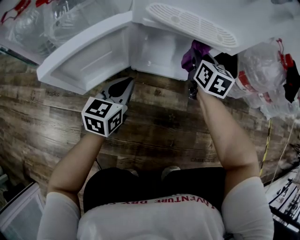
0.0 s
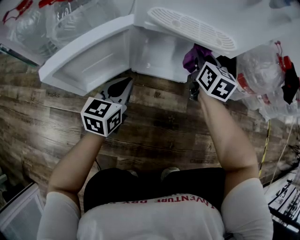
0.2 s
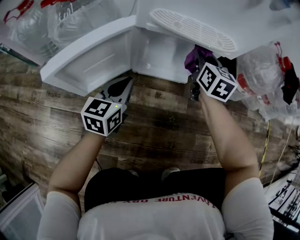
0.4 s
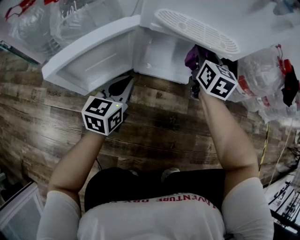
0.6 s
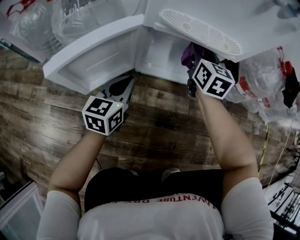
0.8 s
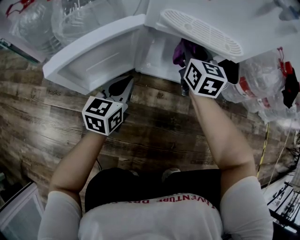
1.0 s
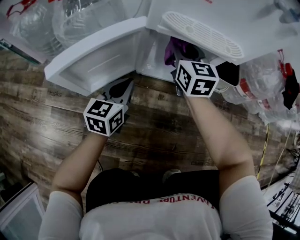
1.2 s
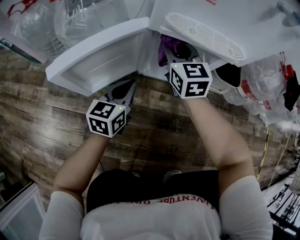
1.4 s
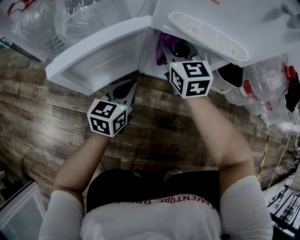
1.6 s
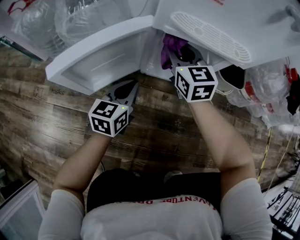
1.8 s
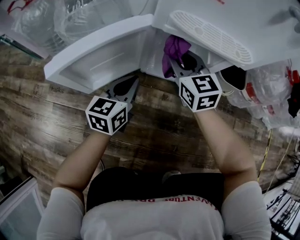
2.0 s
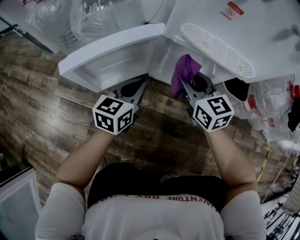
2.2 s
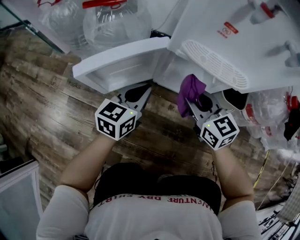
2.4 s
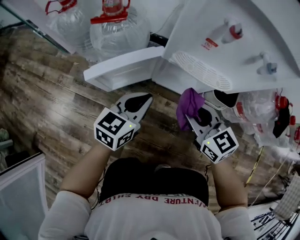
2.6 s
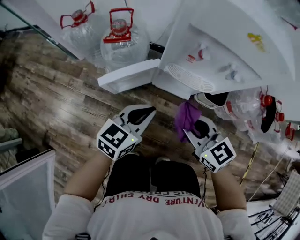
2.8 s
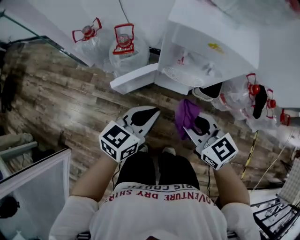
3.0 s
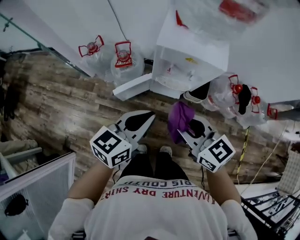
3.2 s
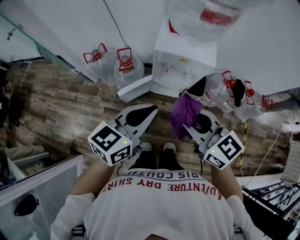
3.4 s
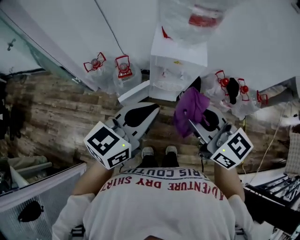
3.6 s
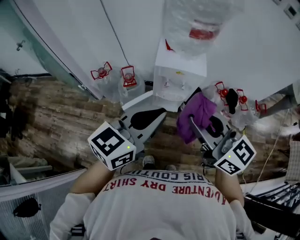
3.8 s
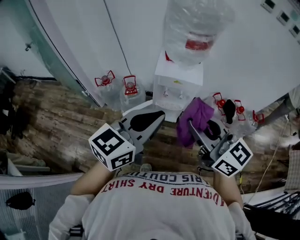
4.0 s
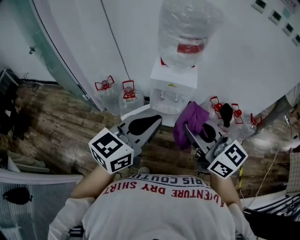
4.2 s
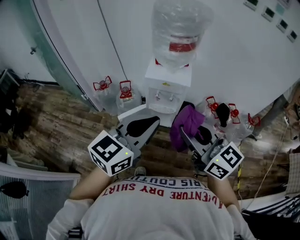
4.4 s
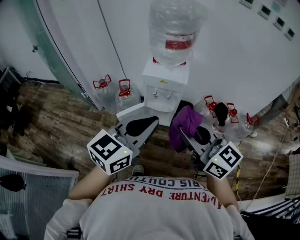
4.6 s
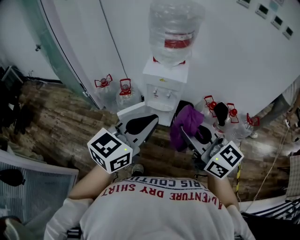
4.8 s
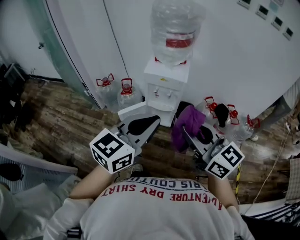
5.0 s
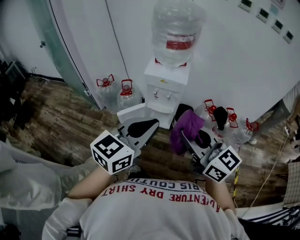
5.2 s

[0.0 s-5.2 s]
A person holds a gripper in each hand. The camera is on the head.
0.0 to 1.8 s: The right gripper travels to the left by some 15 cm, and swivels approximately 30 degrees.
1.8 to 3.4 s: The left gripper heads upward, covering roughly 70 cm. The right gripper goes some 70 cm upward and backward, and changes its angle by approximately 30 degrees.
3.4 to 5.2 s: The right gripper heads backward, to the right and upward, covering some 25 cm; the left gripper shifts about 25 cm backward, upward and to the right.

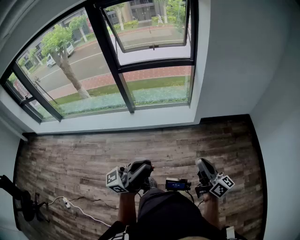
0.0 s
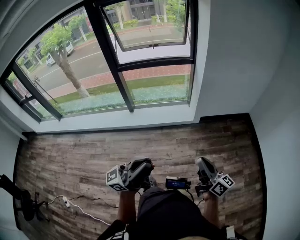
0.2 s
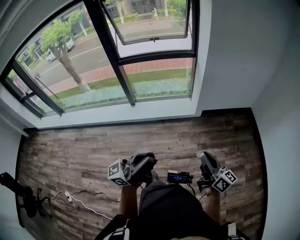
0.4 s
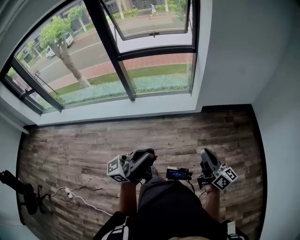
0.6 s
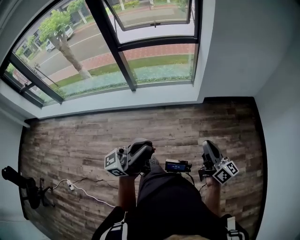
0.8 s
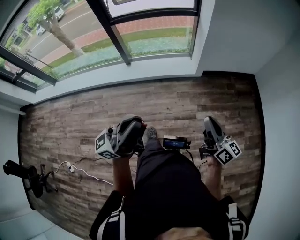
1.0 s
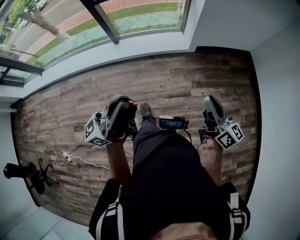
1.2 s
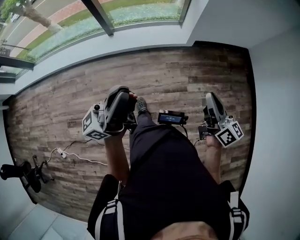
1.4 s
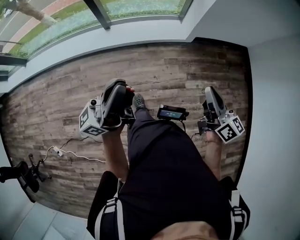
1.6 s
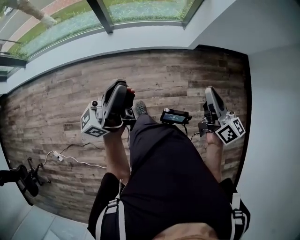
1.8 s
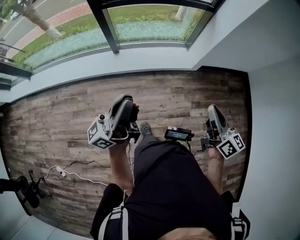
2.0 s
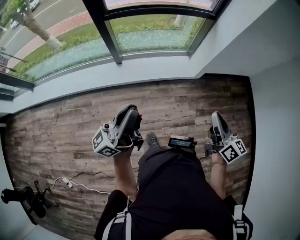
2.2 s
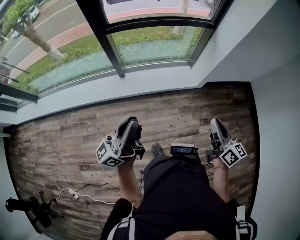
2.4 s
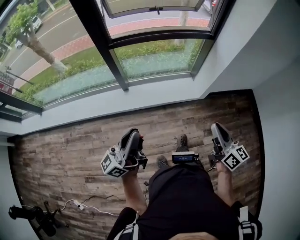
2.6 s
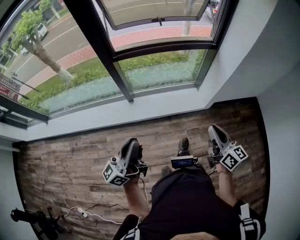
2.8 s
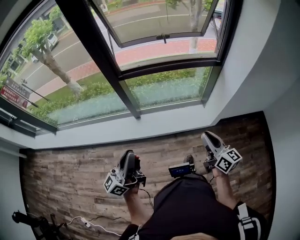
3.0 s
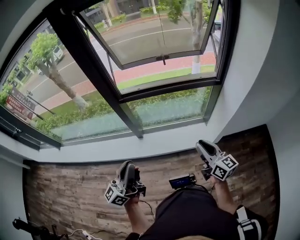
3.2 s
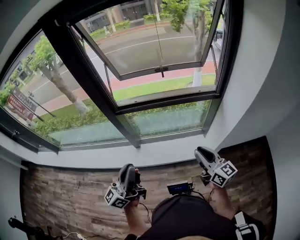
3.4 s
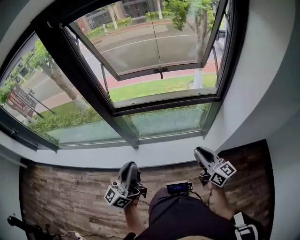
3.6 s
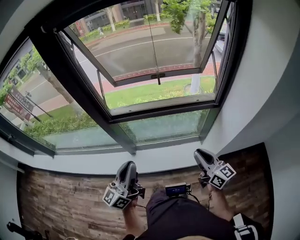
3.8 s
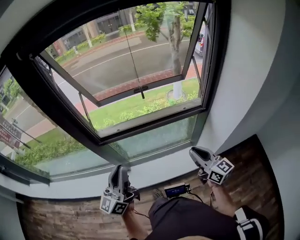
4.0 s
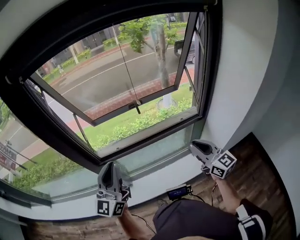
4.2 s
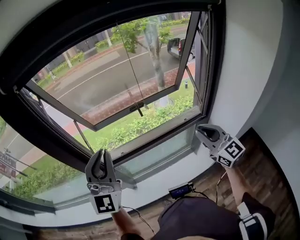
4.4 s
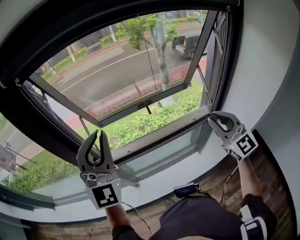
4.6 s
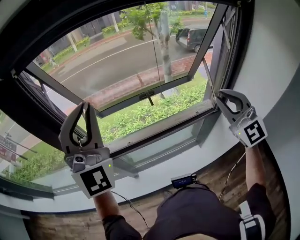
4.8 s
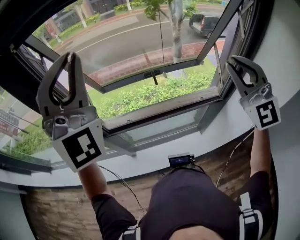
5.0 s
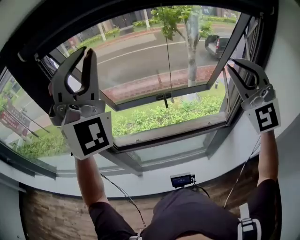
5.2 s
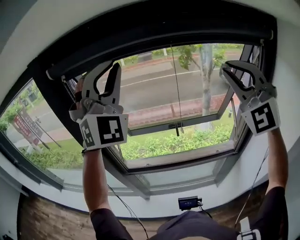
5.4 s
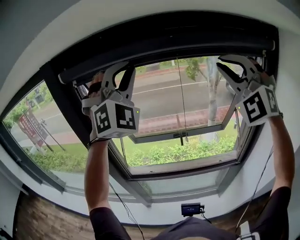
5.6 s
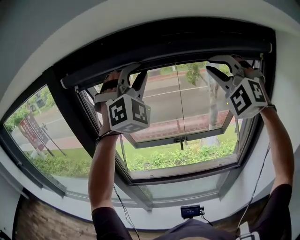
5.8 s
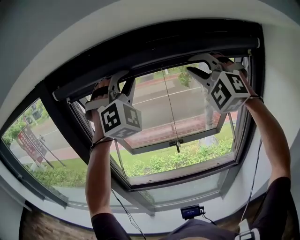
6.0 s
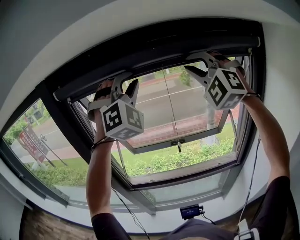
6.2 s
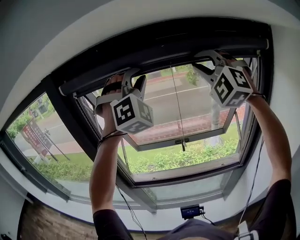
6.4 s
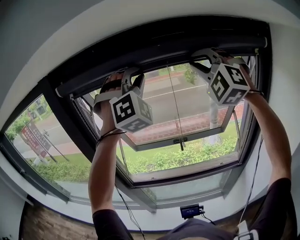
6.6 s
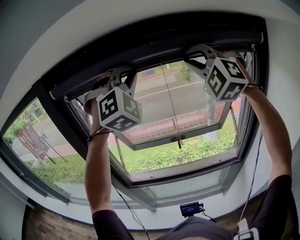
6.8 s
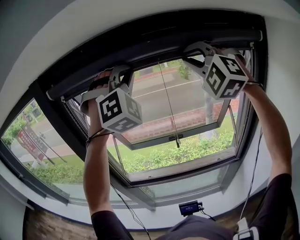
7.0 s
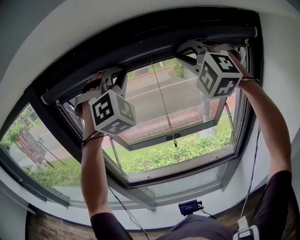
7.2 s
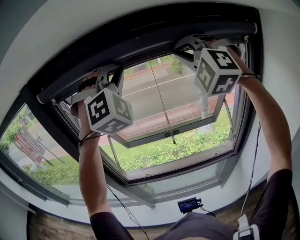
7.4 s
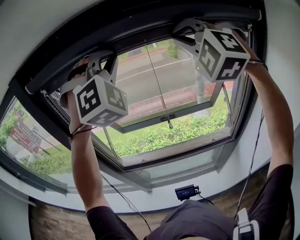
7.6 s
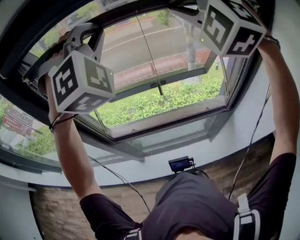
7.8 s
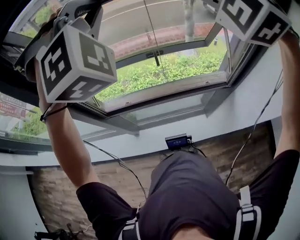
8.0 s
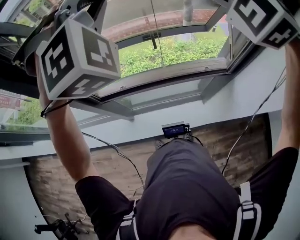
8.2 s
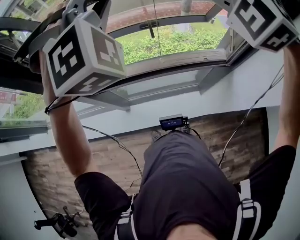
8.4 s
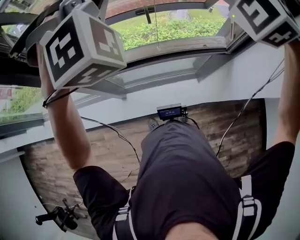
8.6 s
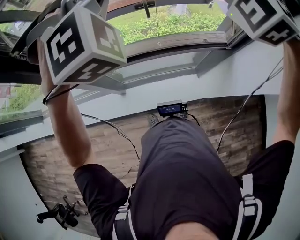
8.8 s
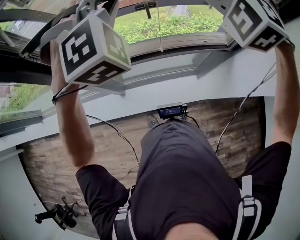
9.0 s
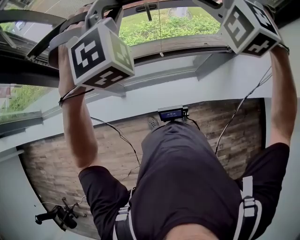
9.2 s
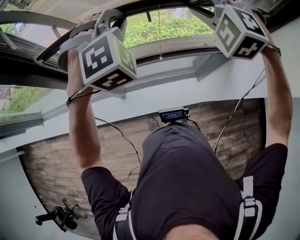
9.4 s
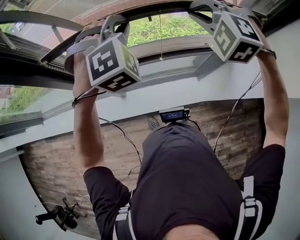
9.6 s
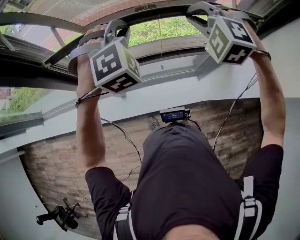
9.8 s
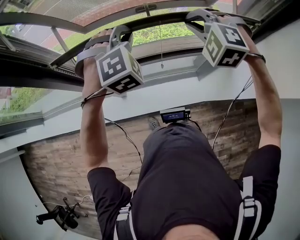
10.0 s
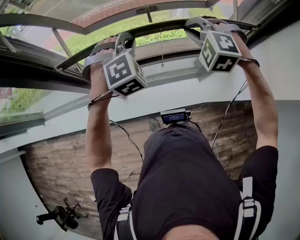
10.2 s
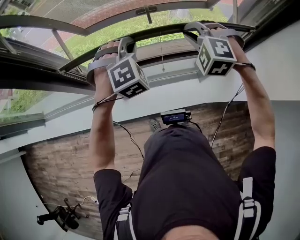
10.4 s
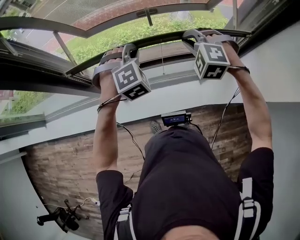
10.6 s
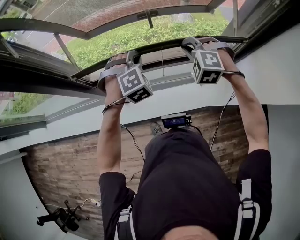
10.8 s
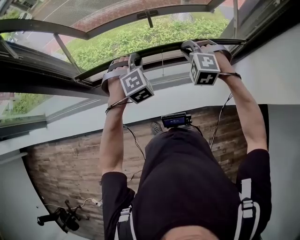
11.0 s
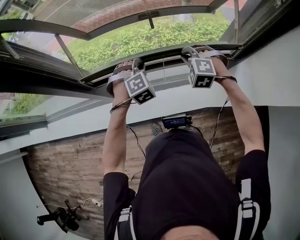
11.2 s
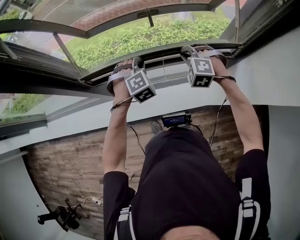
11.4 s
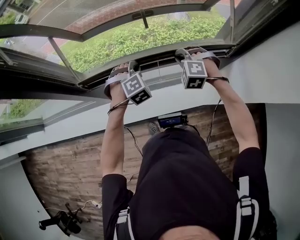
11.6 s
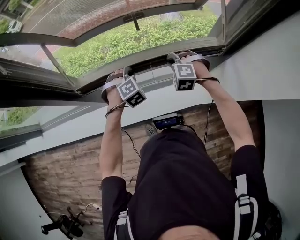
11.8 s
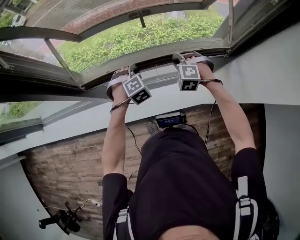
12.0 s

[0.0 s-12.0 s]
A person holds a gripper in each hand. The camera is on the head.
0.0 to 1.6 s: The grippers both shift forward and to the left by about 15 cm.
1.6 to 3.0 s: Both grippers move forward and to the left, roughly 30 cm. The left gripper turns by some 20 degrees.
3.0 to 4.4 s: The two grippers go about 40 cm forward and upward. The left gripper rotates around the line of its fingers by approximately 60 degrees, clockwise from behind, while the right gripper swivels roughly 40 degrees.
4.4 to 6.0 s: The two grippers go some 35 cm upward and forward. The left gripper rotates around the line of its fingers by approximately 60 degrees, clockwise from behind; the right gripper rolls counterclockwise, seen from behind, by roughly 80 degrees.
6.0 to 7.6 s: The grippers move only a little.
7.6 to 9.0 s: Both grippers travel together downward, approximately 25 cm. The left gripper swivels about 30 degrees. Meanwhile the right gripper turns by some 30 degrees.
9.0 to 10.4 s: The grippers both shift downward by about 20 cm.
10.4 to 12.0 s: The grippers both shift downward by approximately 20 cm.

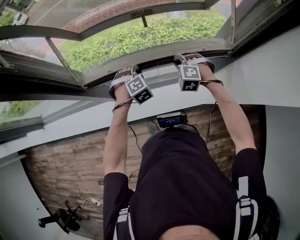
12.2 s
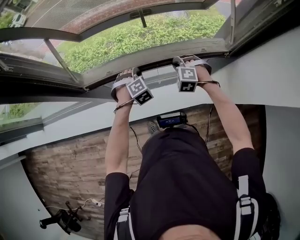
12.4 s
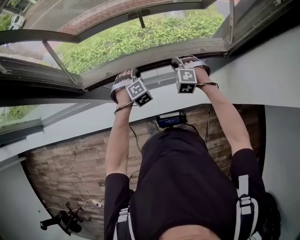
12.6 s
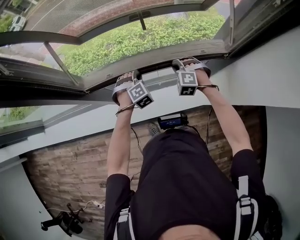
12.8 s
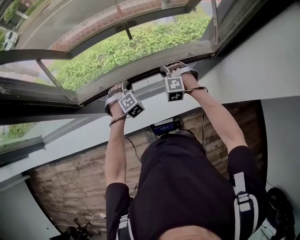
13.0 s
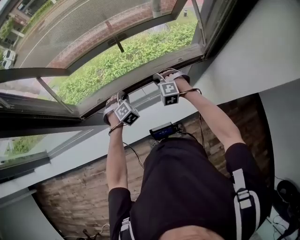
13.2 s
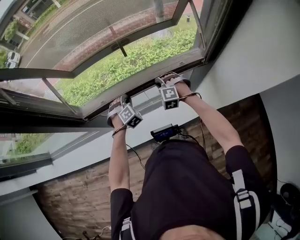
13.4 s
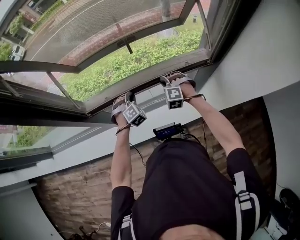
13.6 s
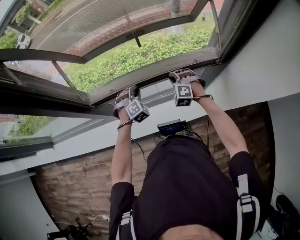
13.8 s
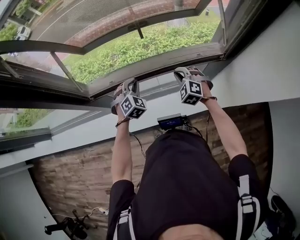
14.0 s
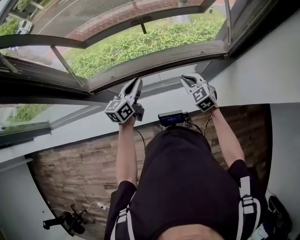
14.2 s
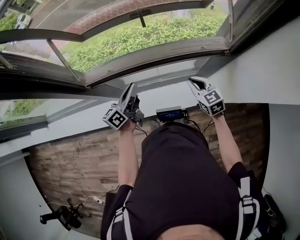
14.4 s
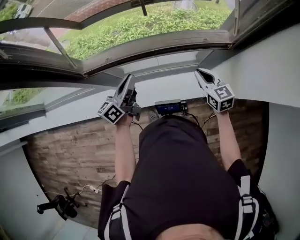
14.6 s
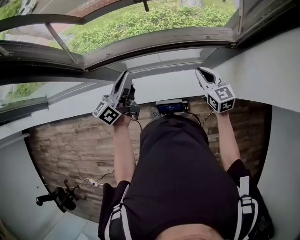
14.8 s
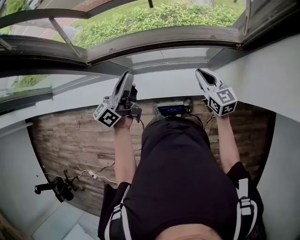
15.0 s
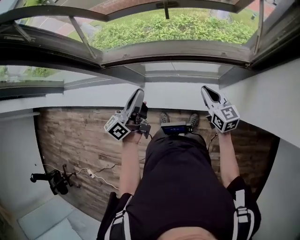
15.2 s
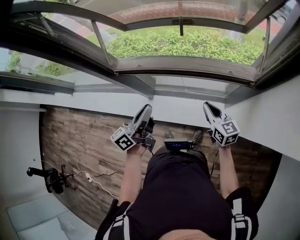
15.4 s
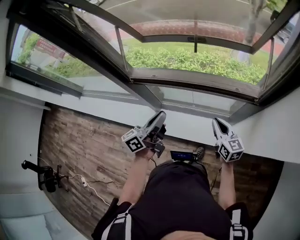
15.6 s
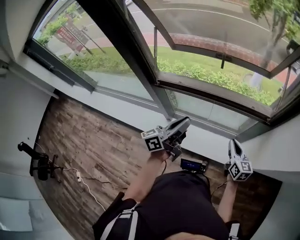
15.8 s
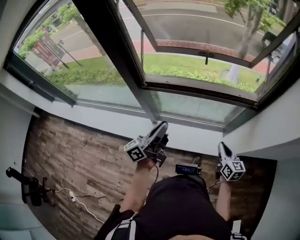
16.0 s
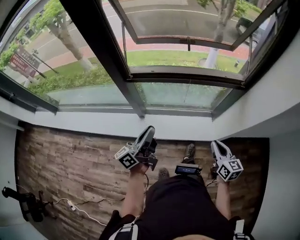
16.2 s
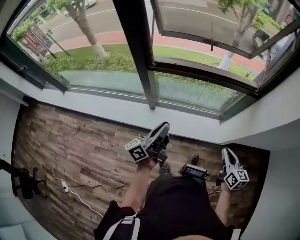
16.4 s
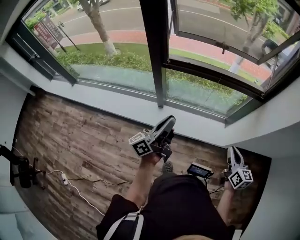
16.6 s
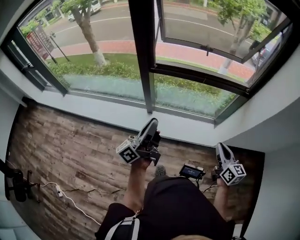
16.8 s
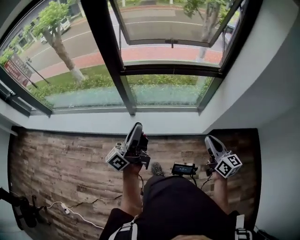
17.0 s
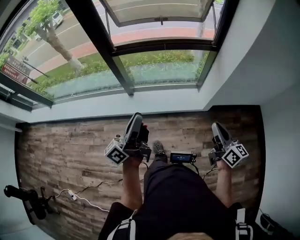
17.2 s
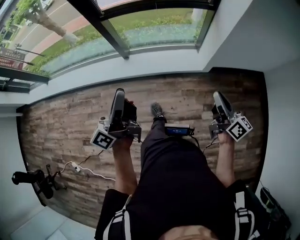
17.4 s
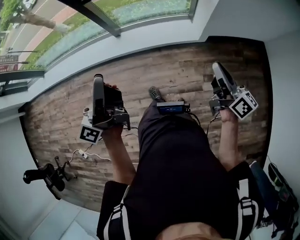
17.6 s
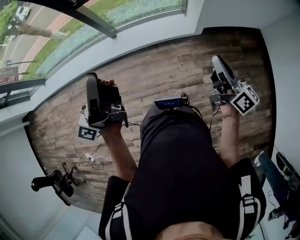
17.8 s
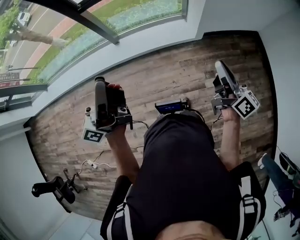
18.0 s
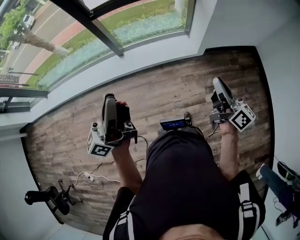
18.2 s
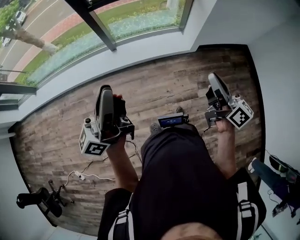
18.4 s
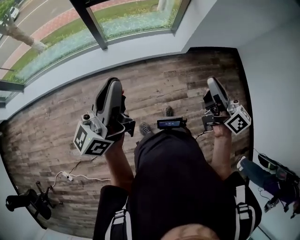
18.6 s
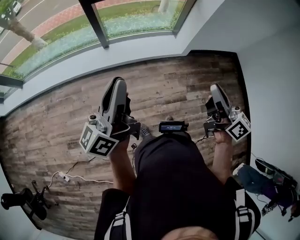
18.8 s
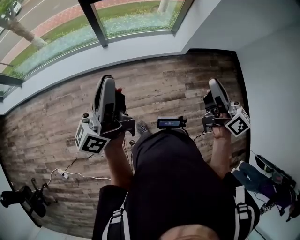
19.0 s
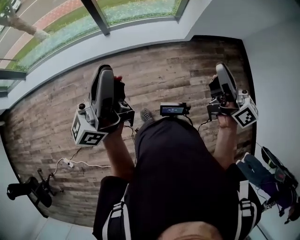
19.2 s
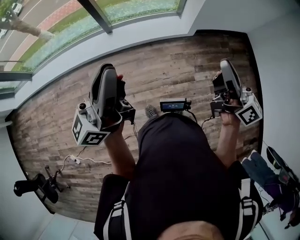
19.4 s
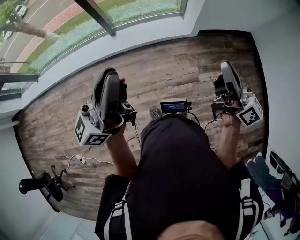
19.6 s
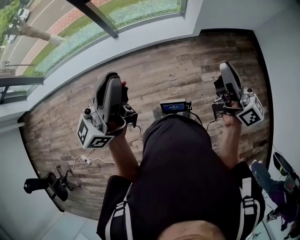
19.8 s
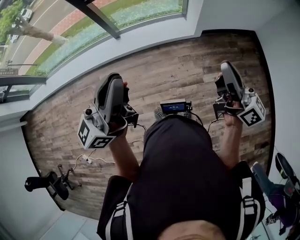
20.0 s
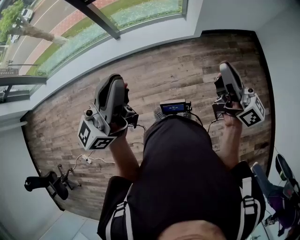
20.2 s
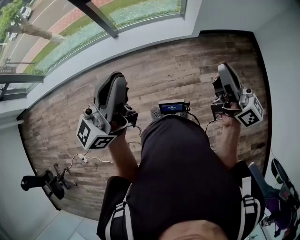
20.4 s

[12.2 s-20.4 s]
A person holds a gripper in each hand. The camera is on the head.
12.2 to 13.8 s: The grippers make only small movements.
13.8 to 15.4 s: The left gripper heads backward and upward, covering about 25 cm, and rotates around the line of its fingers by some 100 degrees, counterclockwise from behind. Meanwhile the right gripper goes approximately 15 cm backward and to the right, and rolls clockwise, seen from behind, by approximately 70 degrees.
15.4 to 17.2 s: The pair of grippers is taken backward, about 40 cm. The right gripper swivels some 30 degrees. The left gripper turns by roughly 20 degrees.
17.2 to 18.8 s: The left gripper heads backward, covering some 20 cm. Meanwhile the right gripper moves backward, to the left and upward, roughly 25 cm.
18.8 to 20.4 s: The right gripper moves to the right, some 10 cm. Meanwhile the left gripper shifts some 15 cm to the right and upward, and swivels about 20 degrees.
